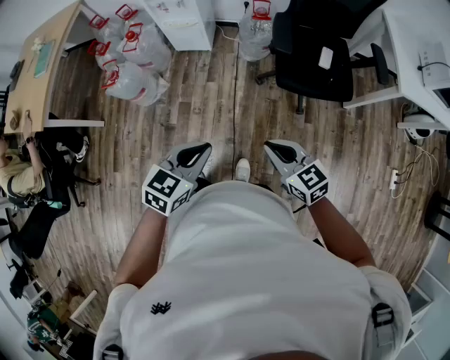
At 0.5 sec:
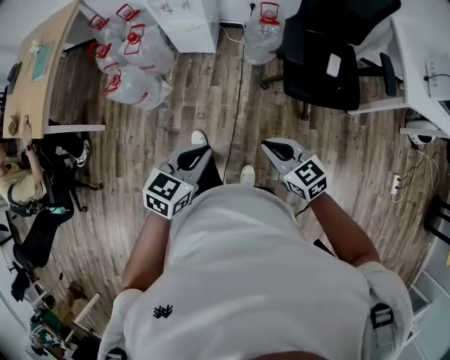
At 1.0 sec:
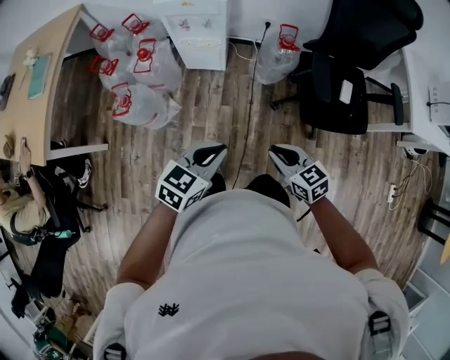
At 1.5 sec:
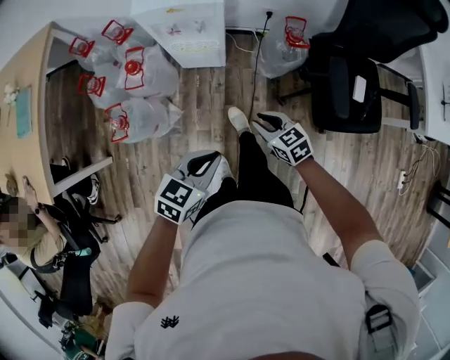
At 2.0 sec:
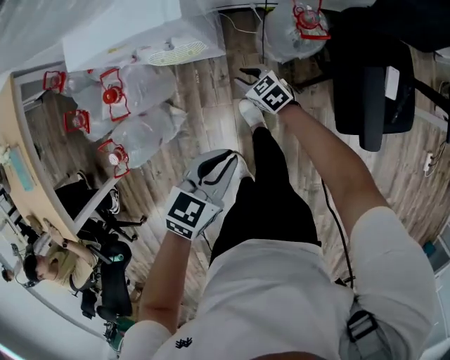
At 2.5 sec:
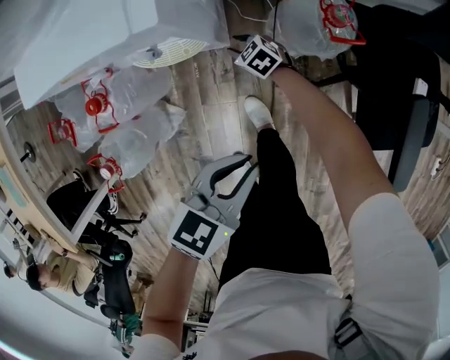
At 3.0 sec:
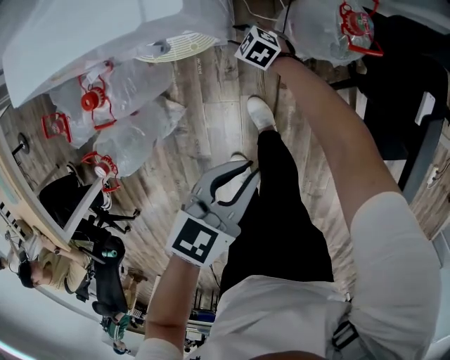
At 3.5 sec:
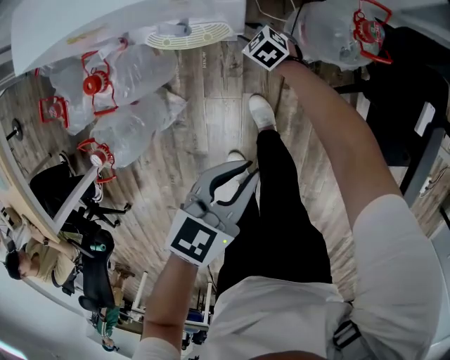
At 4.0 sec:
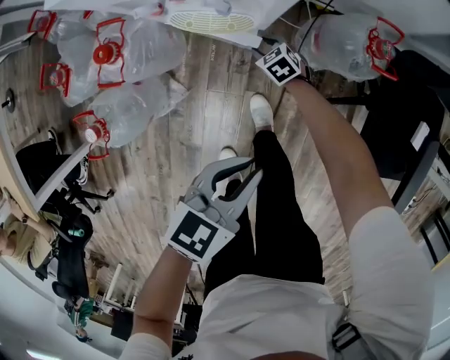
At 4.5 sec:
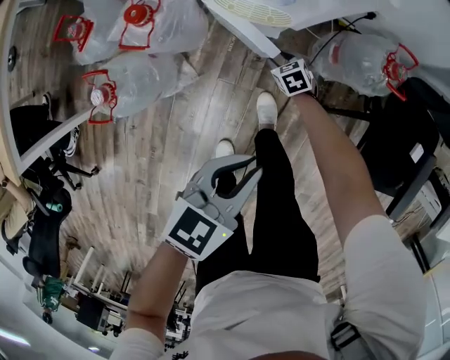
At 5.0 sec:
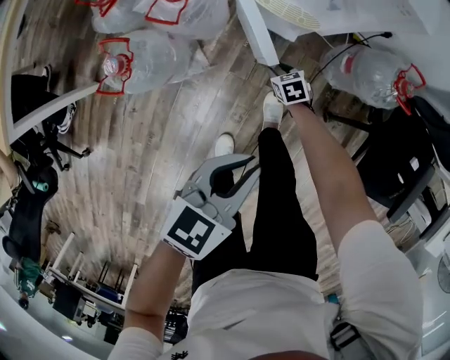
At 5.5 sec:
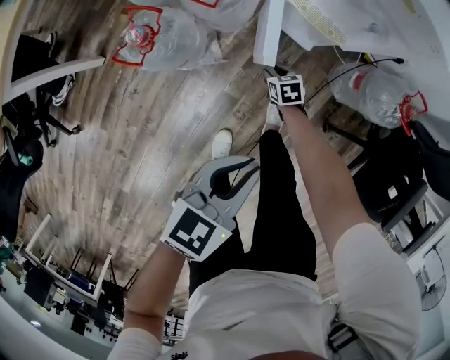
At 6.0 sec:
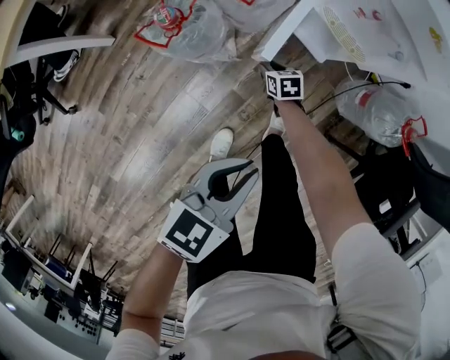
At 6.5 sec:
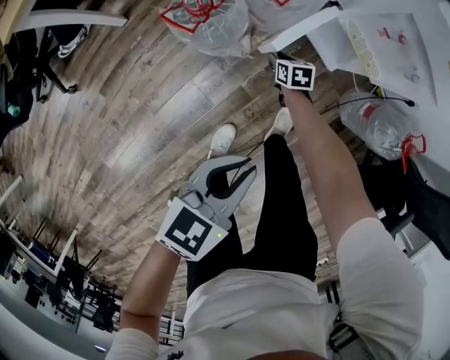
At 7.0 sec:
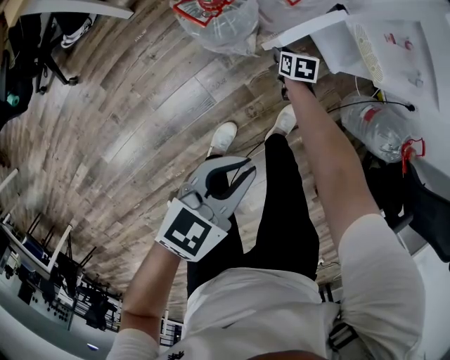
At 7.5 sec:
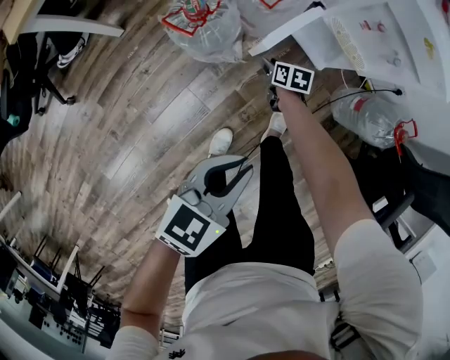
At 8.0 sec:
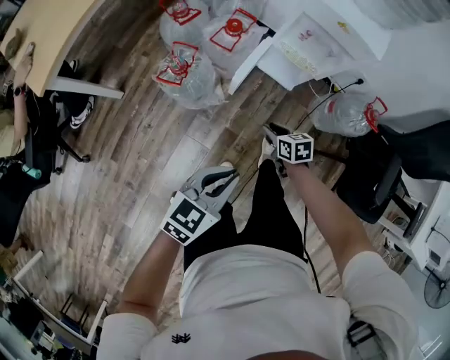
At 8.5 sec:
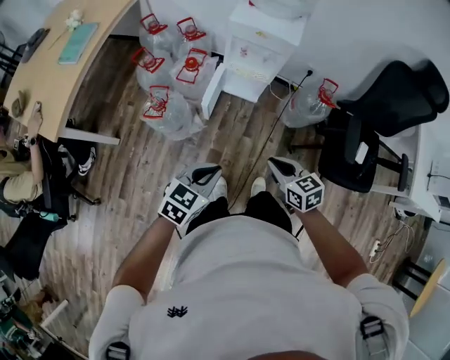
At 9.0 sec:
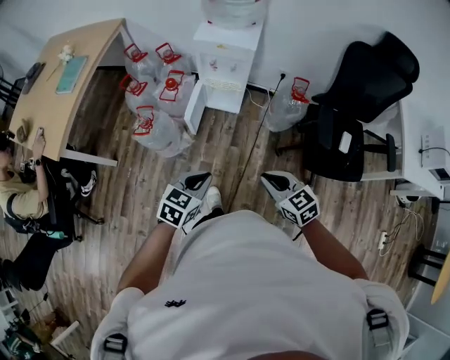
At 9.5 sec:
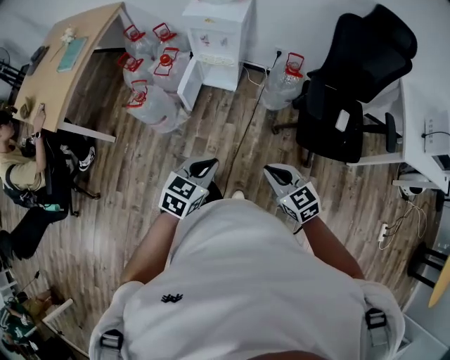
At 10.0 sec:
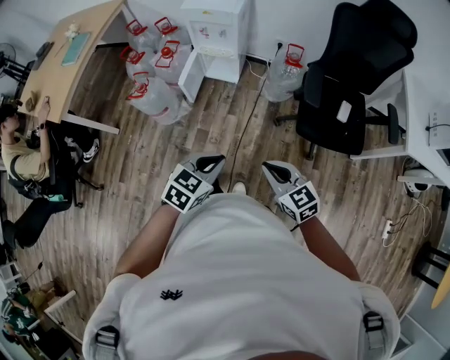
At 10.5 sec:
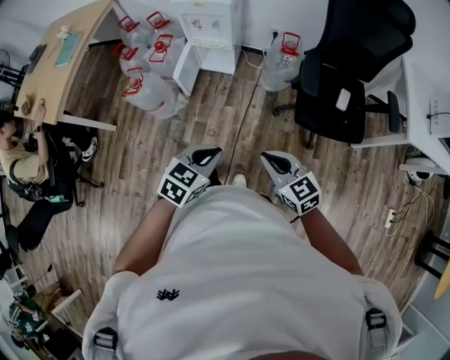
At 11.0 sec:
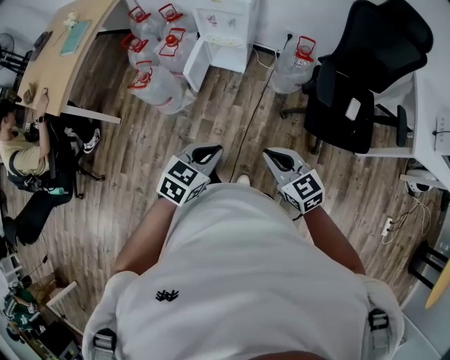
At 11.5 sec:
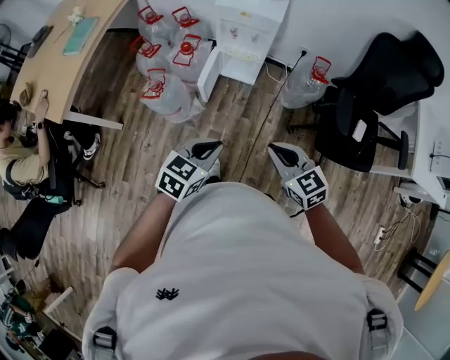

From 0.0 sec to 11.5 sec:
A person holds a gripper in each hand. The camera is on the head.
From 0.0 sec to 2.0 sec: The two grippers travel together, forward, roughly 60 cm. The right gripper moves downward, about 40 cm, and opens up.
From 2.0 sec to 4.0 sec: The right gripper is displaced downward, to the left and forward by about 20 cm. Meanwhile the left gripper moves downward, about 5 cm.
From 4.0 sec to 6.0 sec: The right gripper changes place by roughly 35 cm, while the left gripper moves roughly 30 cm, and turns by roughly 30 degrees.
From 6.0 sec to 7.5 sec: The left gripper moves to the left, roughly 5 cm. Meanwhile the right gripper ends up some 5 cm from where it was.
From 7.5 sec to 9.5 sec: The left gripper moves backward, to the right and upward, roughly 35 cm, and changes its angle by some 30 degrees. Meanwhile the right gripper heads upward, backward and to the right, covering roughly 80 cm, changes its angle by approximately 40 degrees, and closes.
From 9.5 sec to 11.5 sec: The grippers both shift to the left and forward by approximately 15 cm.

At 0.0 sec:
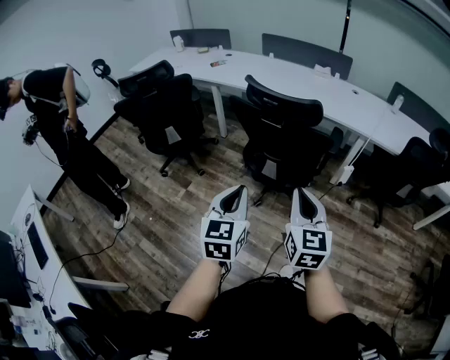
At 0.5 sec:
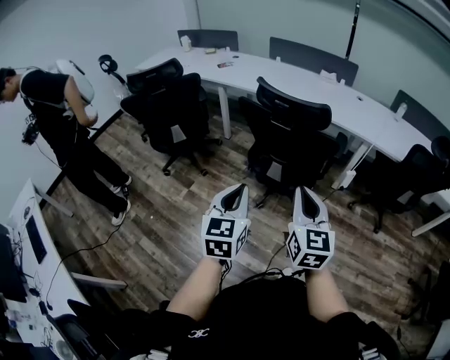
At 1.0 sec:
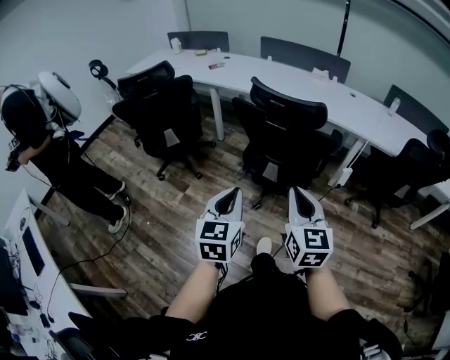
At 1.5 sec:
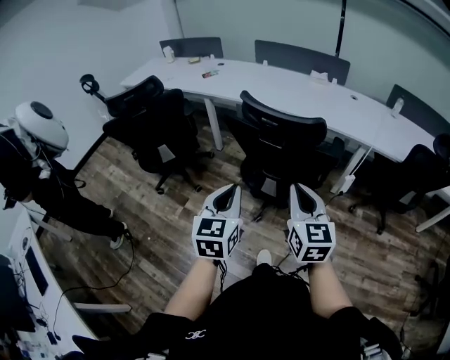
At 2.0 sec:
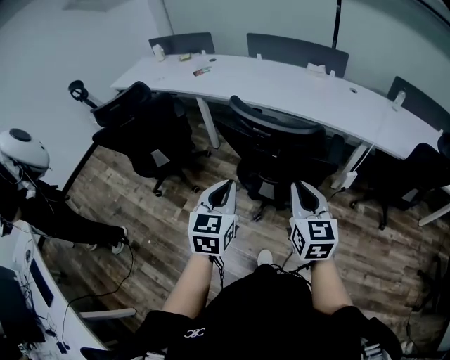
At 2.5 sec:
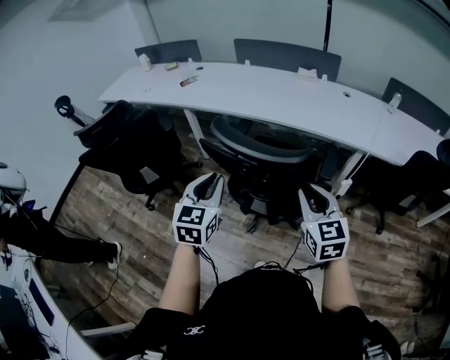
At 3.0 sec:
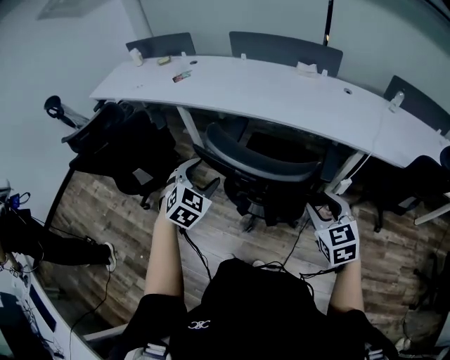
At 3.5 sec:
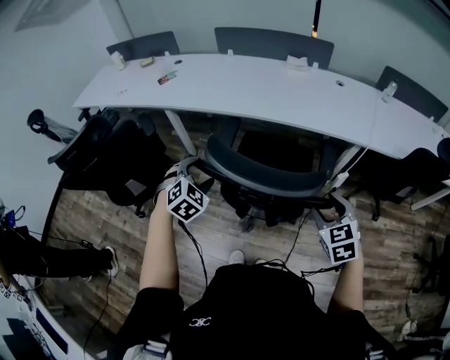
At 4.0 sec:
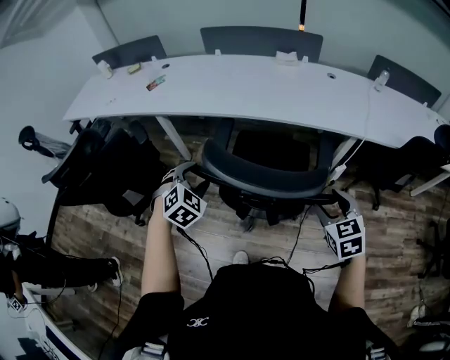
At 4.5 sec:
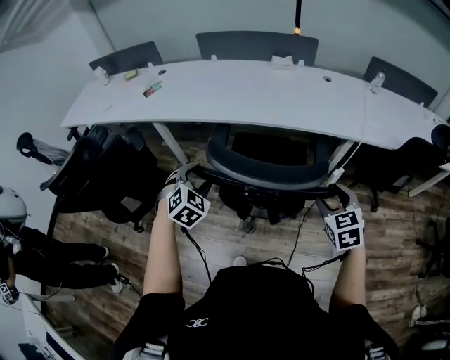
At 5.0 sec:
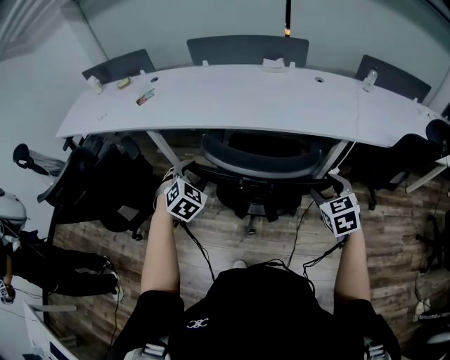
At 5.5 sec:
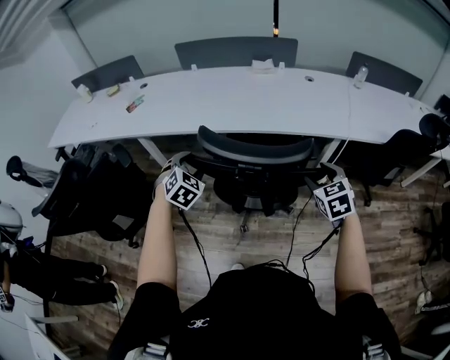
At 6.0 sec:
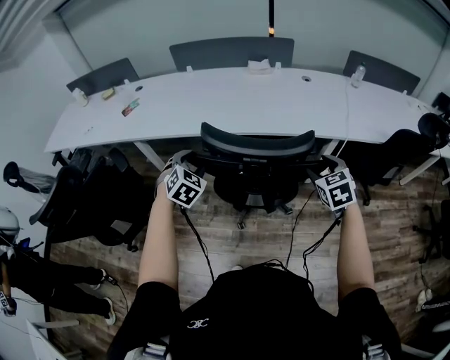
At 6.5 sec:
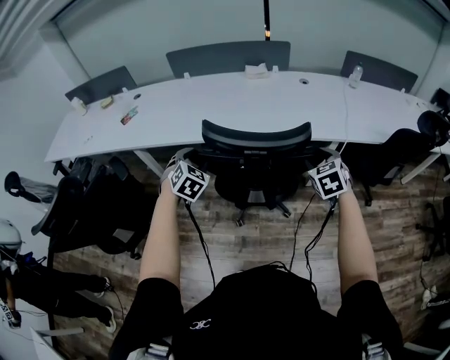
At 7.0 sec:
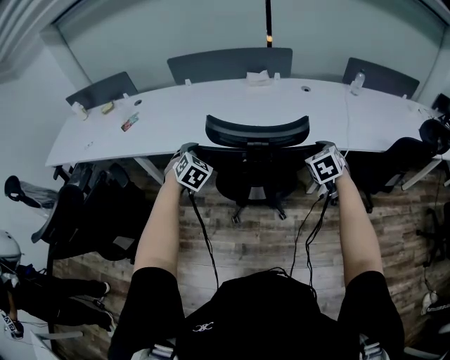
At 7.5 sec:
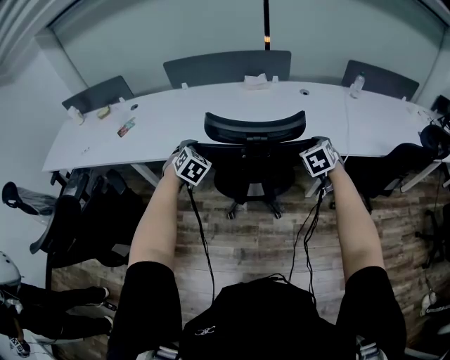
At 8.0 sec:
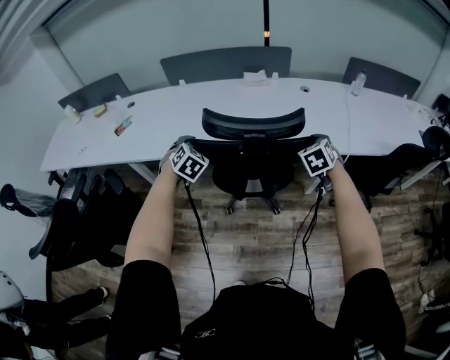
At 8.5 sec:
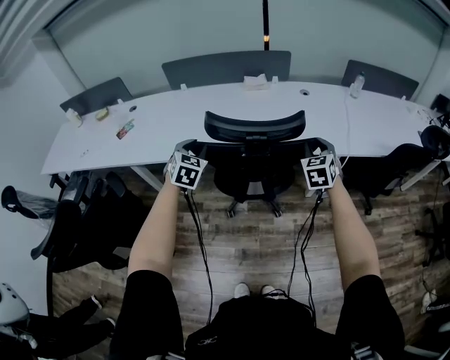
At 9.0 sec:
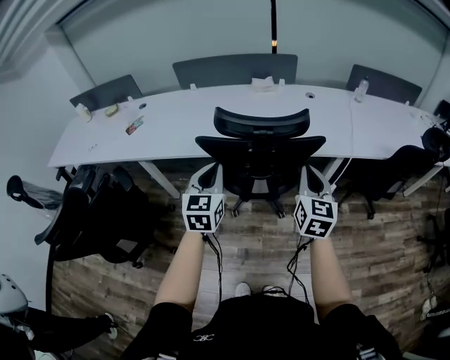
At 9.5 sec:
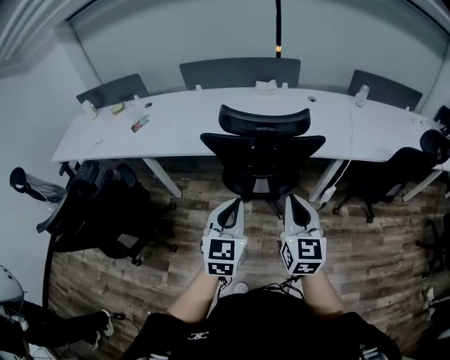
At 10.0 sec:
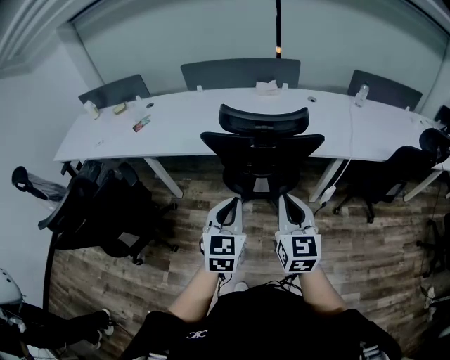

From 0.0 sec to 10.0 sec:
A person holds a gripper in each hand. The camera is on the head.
From 0.0 sec to 2.0 sec: Both grippers travel together forward, roughly 20 cm.
From 2.0 sec to 4.0 sec: The left gripper shifts approximately 30 cm forward, rolls clockwise, seen from behind, by some 50 degrees, and opens up. Meanwhile the right gripper shifts about 20 cm forward, to the right and downward, changes its angle by some 30 degrees, and opens its fingers.
From 4.0 sec to 6.0 sec: Both grippers move forward, some 15 cm.
From 6.0 sec to 8.0 sec: The grippers both shift forward by approximately 20 cm.
From 8.0 sec to 10.0 sec: Both grippers move backward, about 30 cm. The left gripper turns by about 40 degrees, and closes up. Meanwhile the right gripper tips its fingers upward by roughly 30 degrees, and closes its fingers.

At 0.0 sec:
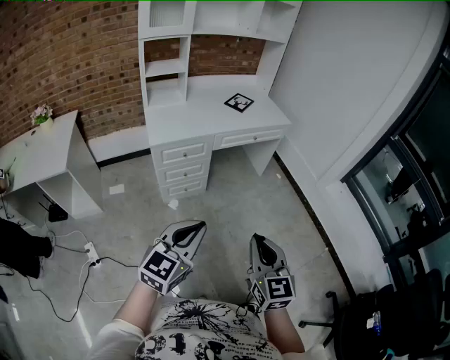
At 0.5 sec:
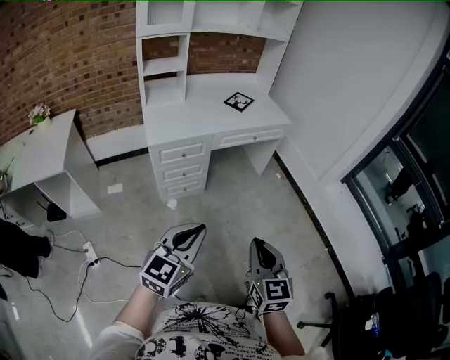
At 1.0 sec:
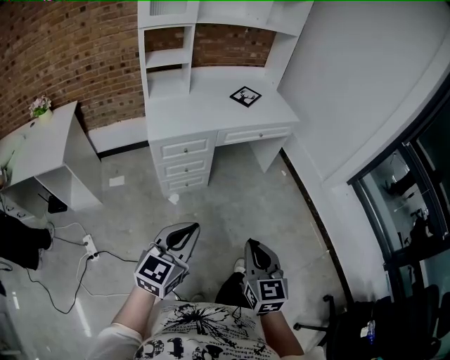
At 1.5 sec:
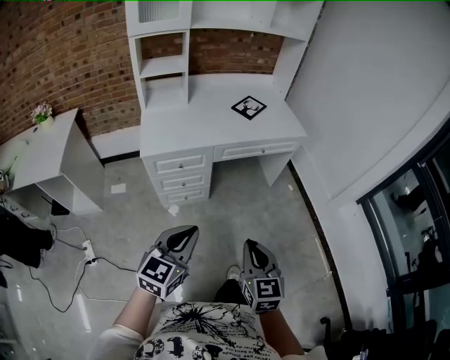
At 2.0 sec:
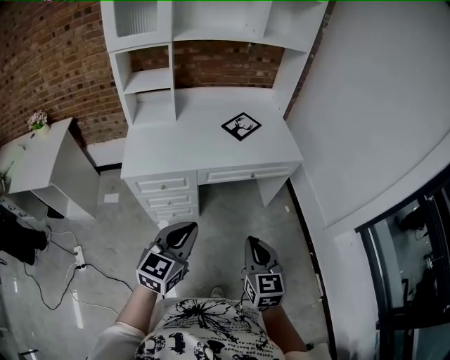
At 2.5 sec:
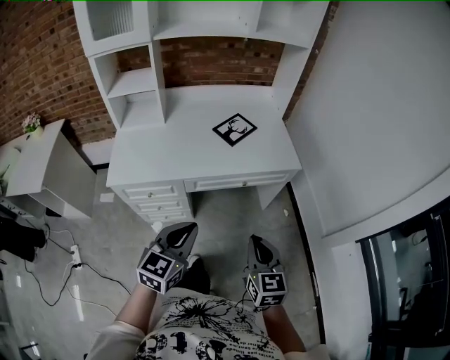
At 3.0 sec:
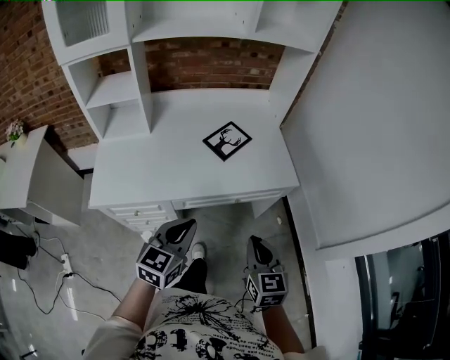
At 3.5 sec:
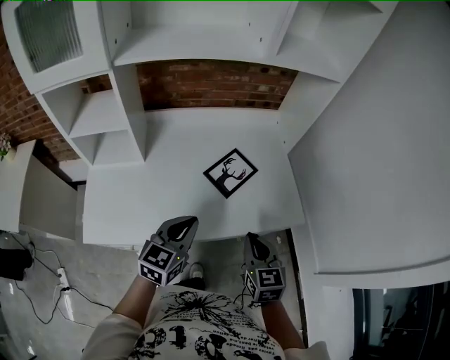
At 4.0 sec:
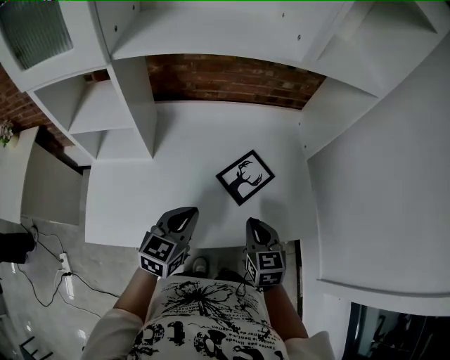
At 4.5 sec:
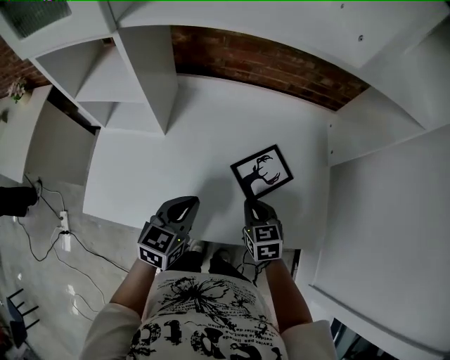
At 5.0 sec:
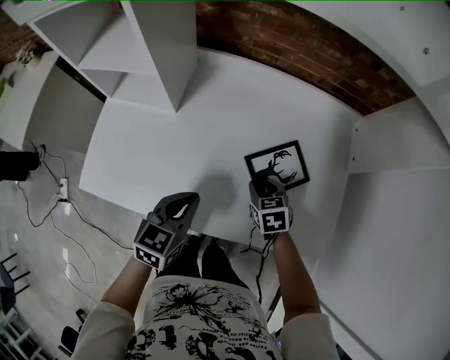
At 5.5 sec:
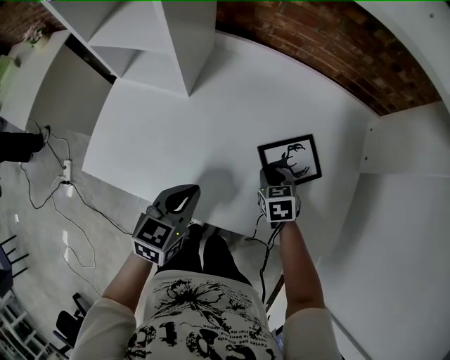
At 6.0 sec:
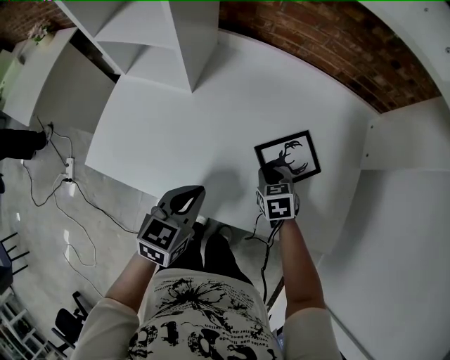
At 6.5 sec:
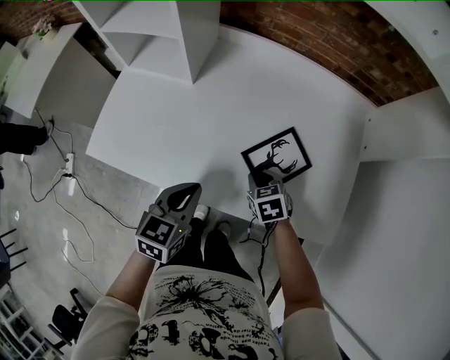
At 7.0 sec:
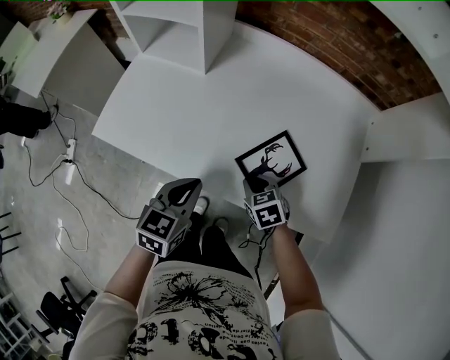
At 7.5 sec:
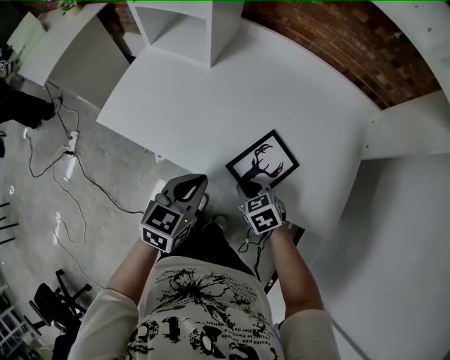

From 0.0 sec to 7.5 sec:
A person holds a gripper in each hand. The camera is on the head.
From 0.0 sec to 2.0 sec: Both grippers travel together forward, roughly 35 cm.
From 2.0 sec to 4.0 sec: The pair of grippers is taken forward, about 50 cm.
From 4.0 sec to 5.5 sec: The right gripper travels downward and forward by about 25 cm, and changes its angle by about 30 degrees. Meanwhile the left gripper travels downward by roughly 10 cm, and changes its angle by about 20 degrees.
From 5.5 sec to 7.5 sec: The right gripper moves backward and to the left, approximately 20 cm, and rotates roughly 30 degrees; the left gripper goes about 10 cm backward.
